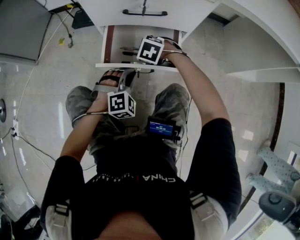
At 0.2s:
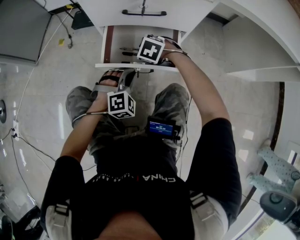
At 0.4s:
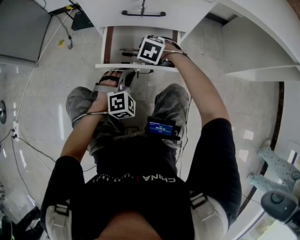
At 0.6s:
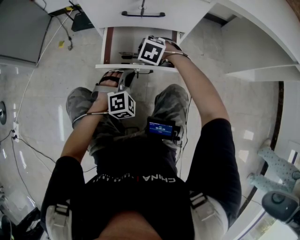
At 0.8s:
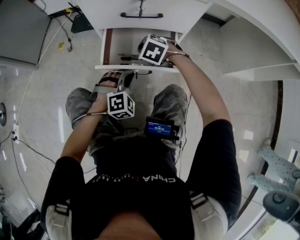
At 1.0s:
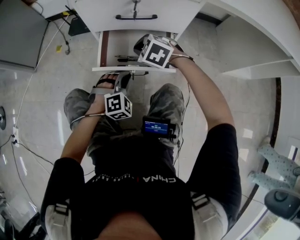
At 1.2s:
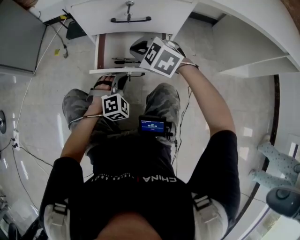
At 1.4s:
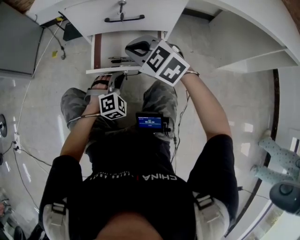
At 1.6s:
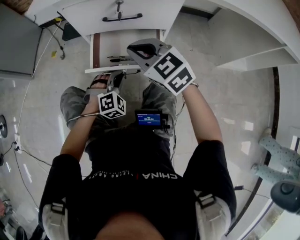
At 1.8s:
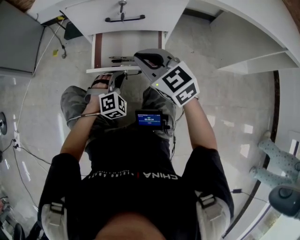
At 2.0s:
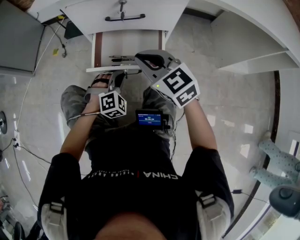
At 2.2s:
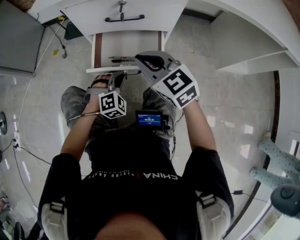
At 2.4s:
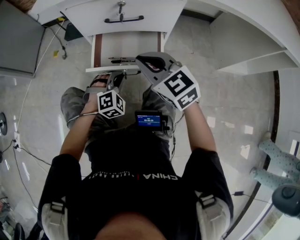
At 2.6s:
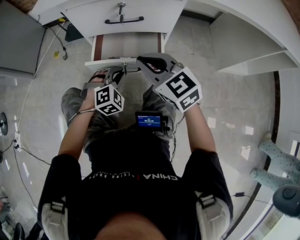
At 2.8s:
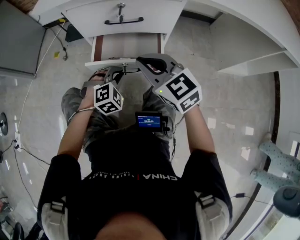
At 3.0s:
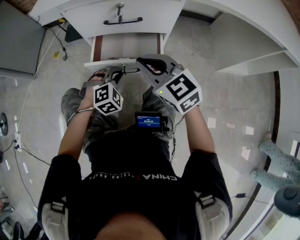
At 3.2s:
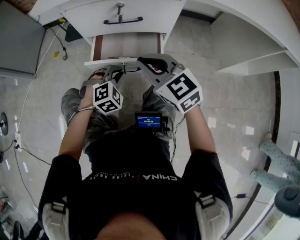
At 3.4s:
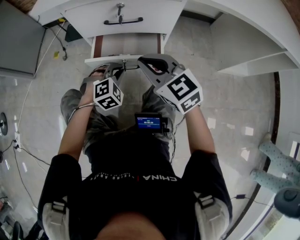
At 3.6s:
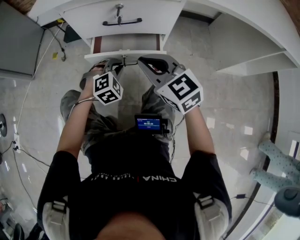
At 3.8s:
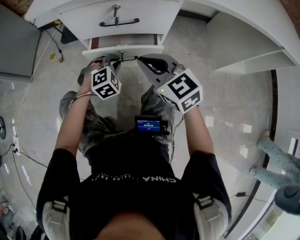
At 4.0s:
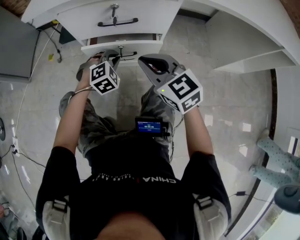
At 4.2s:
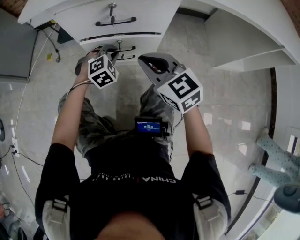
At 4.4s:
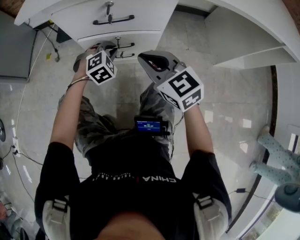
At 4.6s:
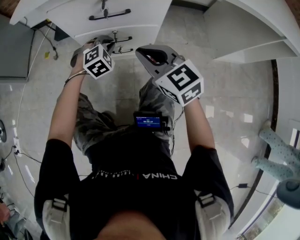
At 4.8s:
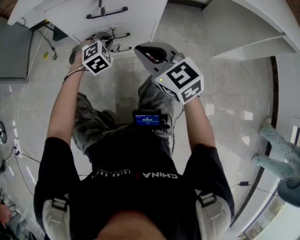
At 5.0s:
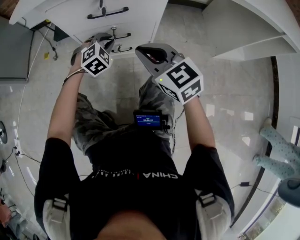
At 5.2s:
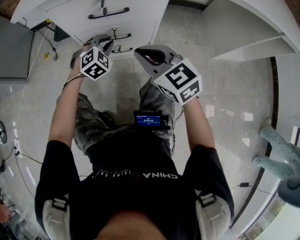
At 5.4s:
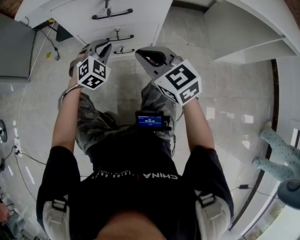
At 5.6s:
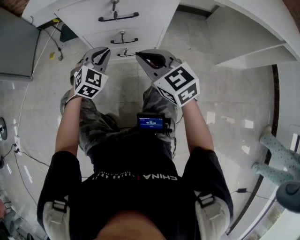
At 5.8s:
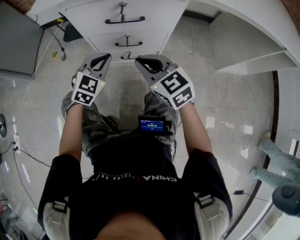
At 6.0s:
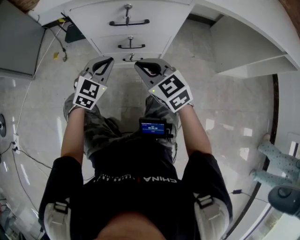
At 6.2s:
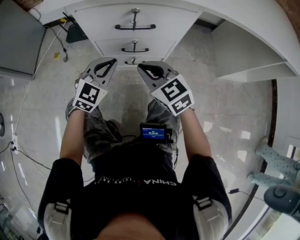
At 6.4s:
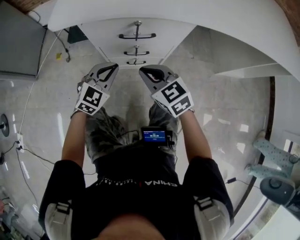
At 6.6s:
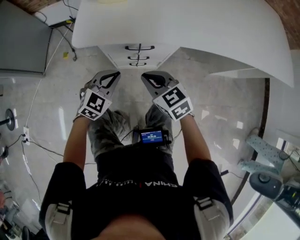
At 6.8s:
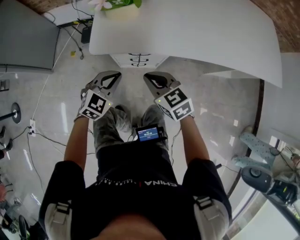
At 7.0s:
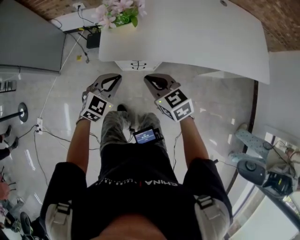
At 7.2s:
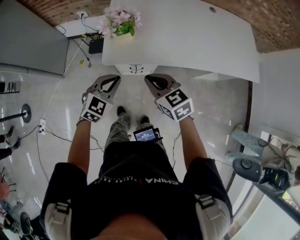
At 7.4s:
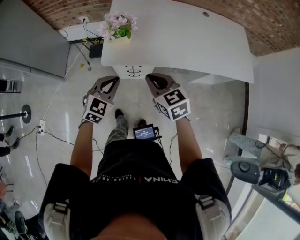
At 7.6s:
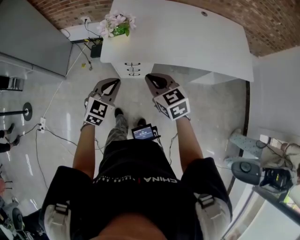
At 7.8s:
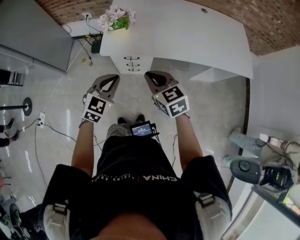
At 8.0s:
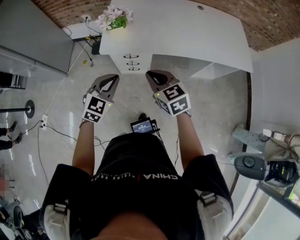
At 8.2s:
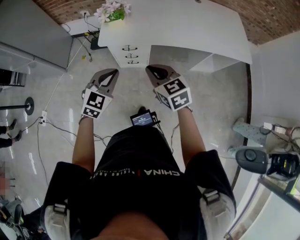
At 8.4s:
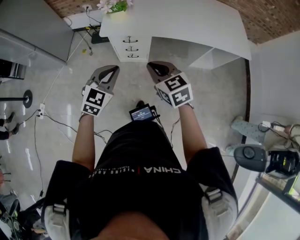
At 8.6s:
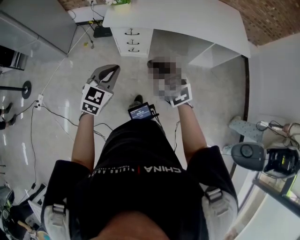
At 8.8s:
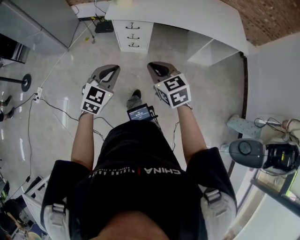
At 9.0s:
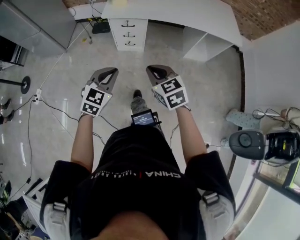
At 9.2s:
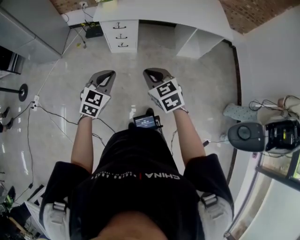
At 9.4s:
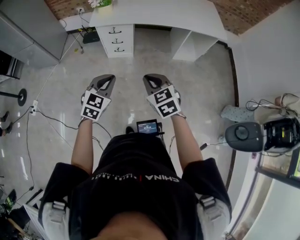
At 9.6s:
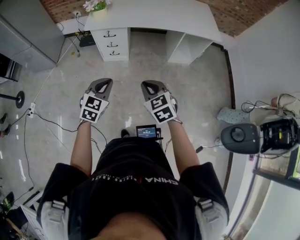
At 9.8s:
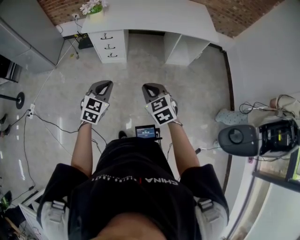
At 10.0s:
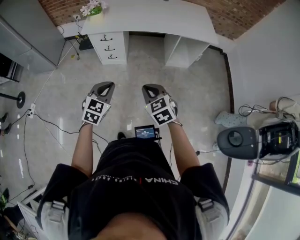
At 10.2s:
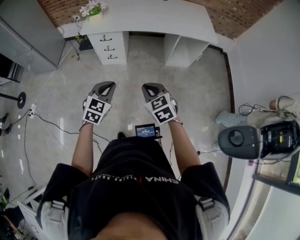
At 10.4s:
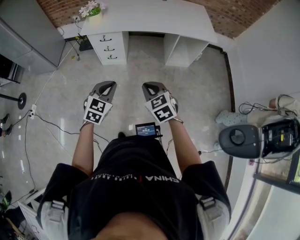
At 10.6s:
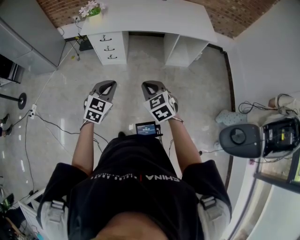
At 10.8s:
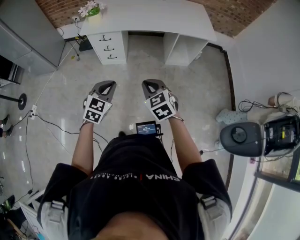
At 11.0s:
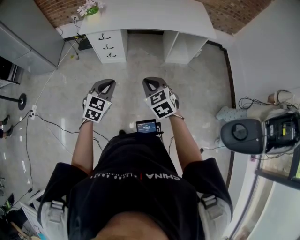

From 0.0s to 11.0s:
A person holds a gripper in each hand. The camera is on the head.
From 0.0s to 1.6s: The right gripper goes roughly 25 cm upward, and tips its fingers upward by approximately 40 degrees.
From 1.6s to 3.2s: The grippers stay close to where they were, moving slightly.
From 3.2s to 4.8s: The left gripper heads forward, covering approximately 15 cm.
From 4.8s to 6.2s: The right gripper shifts some 5 cm to the left. The left gripper is displaced upward, backward and to the left by roughly 15 cm, and rotates about 40 degrees.
From 6.2s to 7.8s: The grippers both shift upward by approximately 60 cm.
From 7.8s to 9.4s: Both grippers travel together backward, approximately 40 cm.
From 9.4s to 11.0s: The two grippers go some 10 cm to the right.

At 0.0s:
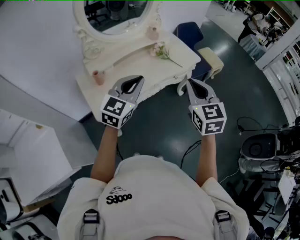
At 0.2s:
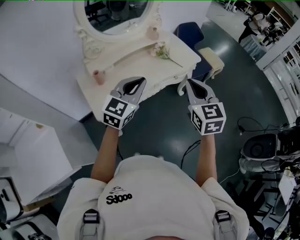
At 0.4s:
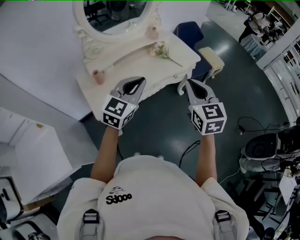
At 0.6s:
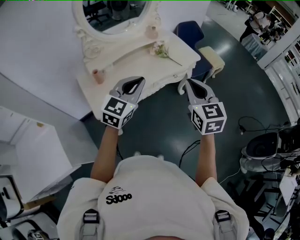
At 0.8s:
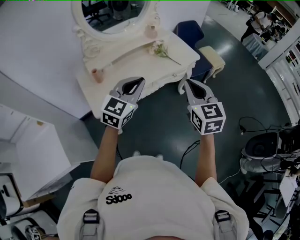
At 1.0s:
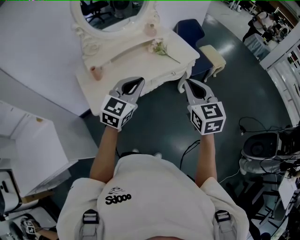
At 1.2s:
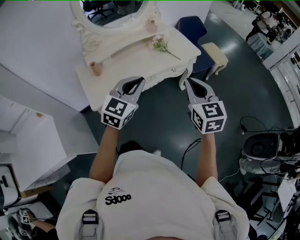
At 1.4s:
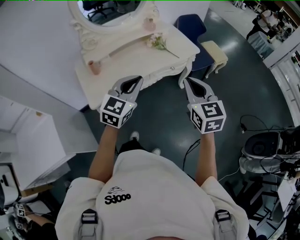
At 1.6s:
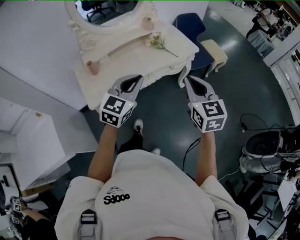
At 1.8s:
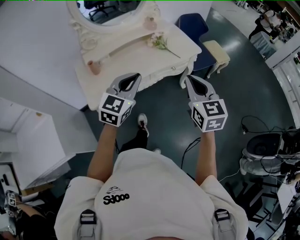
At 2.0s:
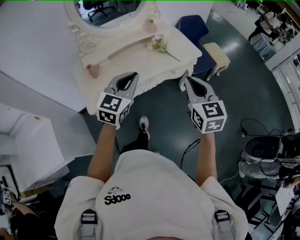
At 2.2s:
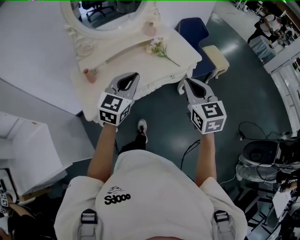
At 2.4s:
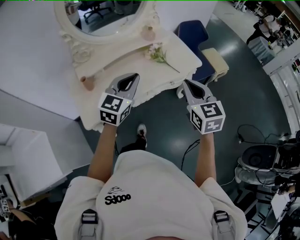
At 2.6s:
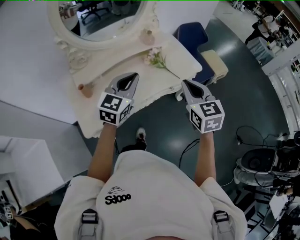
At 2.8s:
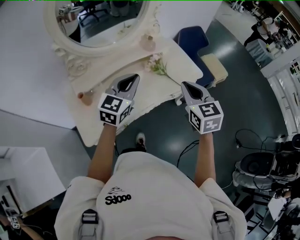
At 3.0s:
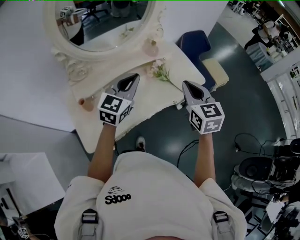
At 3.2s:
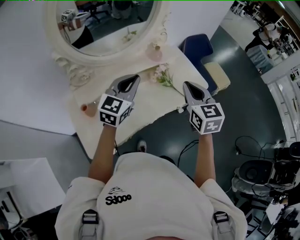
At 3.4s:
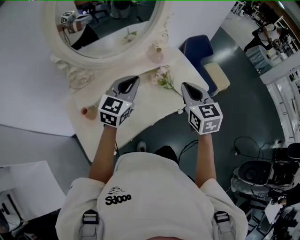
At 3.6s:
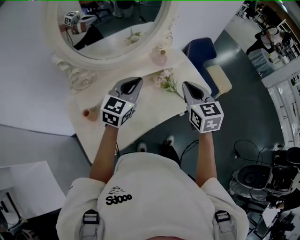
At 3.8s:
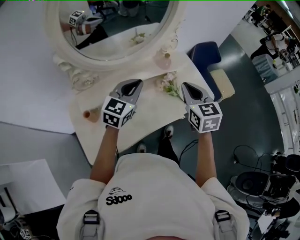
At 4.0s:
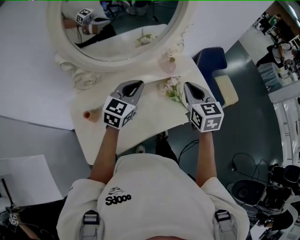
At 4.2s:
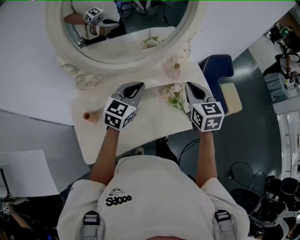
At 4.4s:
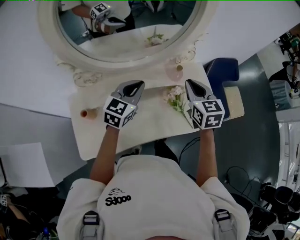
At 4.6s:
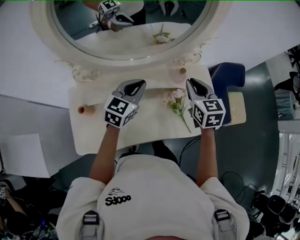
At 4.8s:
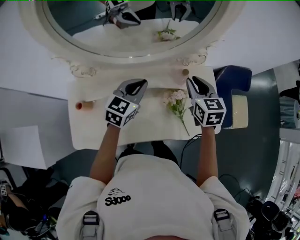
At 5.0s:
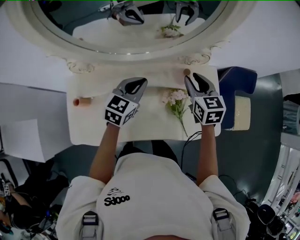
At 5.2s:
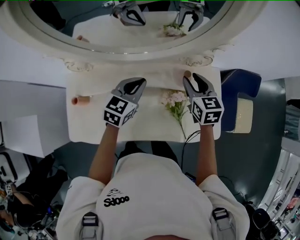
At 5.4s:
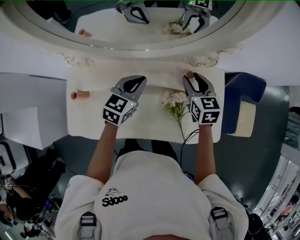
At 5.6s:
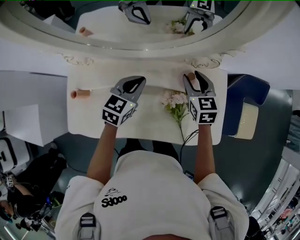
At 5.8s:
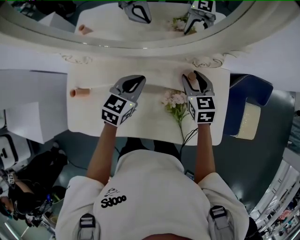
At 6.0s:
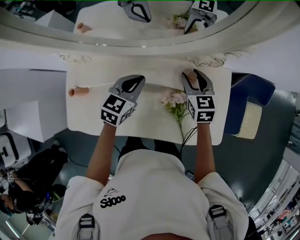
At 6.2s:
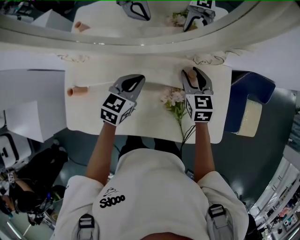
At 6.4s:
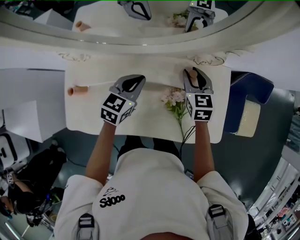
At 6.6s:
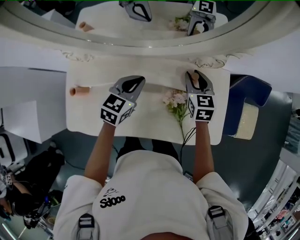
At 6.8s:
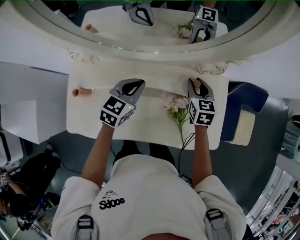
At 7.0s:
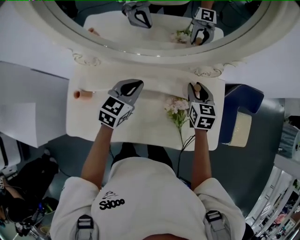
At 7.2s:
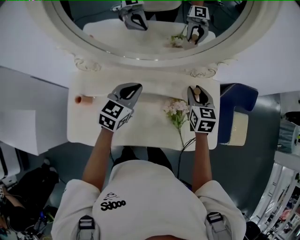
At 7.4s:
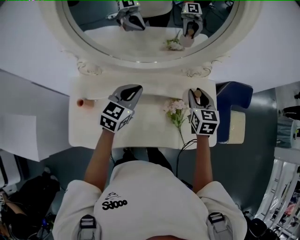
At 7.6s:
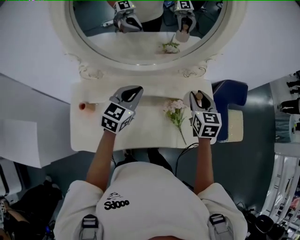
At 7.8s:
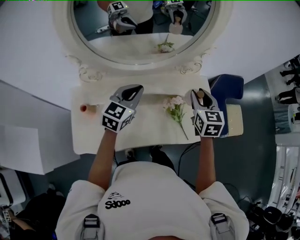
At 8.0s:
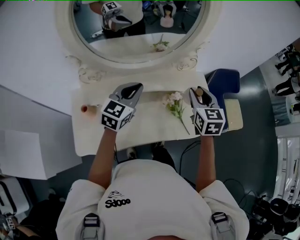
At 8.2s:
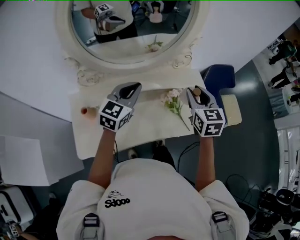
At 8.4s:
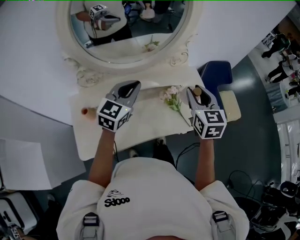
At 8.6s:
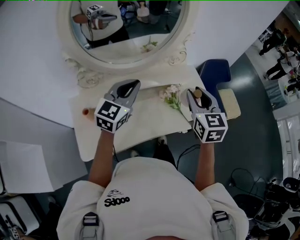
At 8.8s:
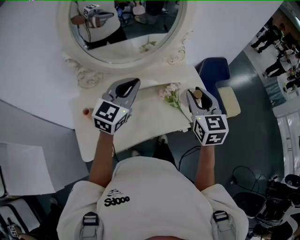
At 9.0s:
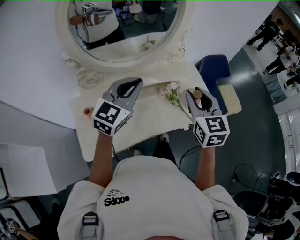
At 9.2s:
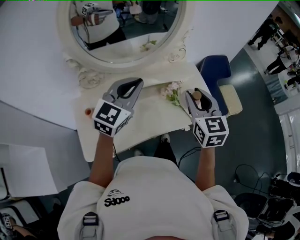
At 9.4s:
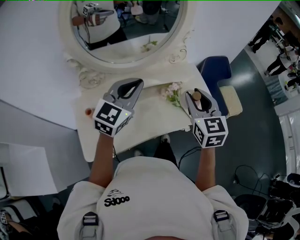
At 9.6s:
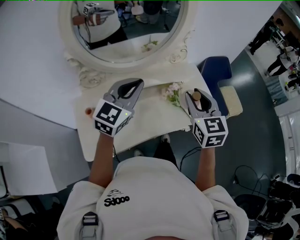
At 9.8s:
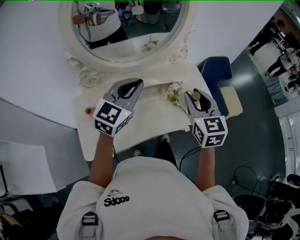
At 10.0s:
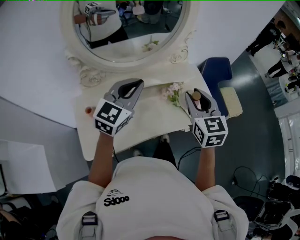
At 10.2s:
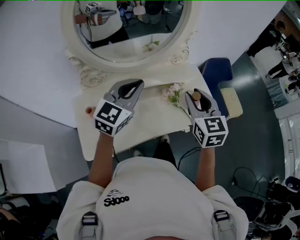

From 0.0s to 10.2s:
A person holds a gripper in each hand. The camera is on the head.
From 0.0s to 1.4s: The grippers both shift to the right by roughly 5 cm.
From 1.4s to 3.0s: Both grippers travel together forward, roughly 30 cm.
From 3.0s to 4.4s: The right gripper goes some 25 cm forward. The left gripper goes some 15 cm forward and to the left.
From 4.4s to 5.8s: The right gripper is displaced downward and forward by approximately 20 cm, and opens its fingers; the left gripper shifts approximately 10 cm downward and forward, and swivels roughly 20 degrees.
From 5.8s to 7.2s: The right gripper ends up about 5 cm from where it was; the left gripper changes place by some 5 cm.
From 7.2s to 8.8s: The right gripper heads backward and upward, covering roughly 30 cm. Meanwhile the left gripper goes some 20 cm upward and backward, and turns by approximately 30 degrees.
From 8.8s to 10.2s: The grippers make only small movements.

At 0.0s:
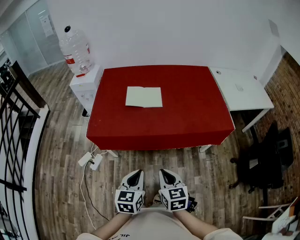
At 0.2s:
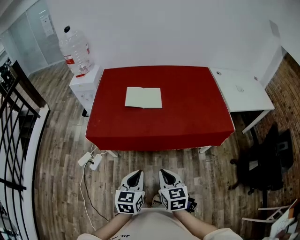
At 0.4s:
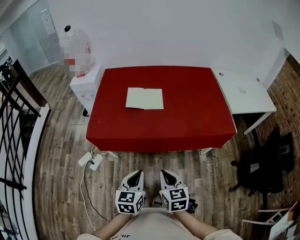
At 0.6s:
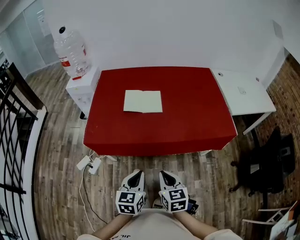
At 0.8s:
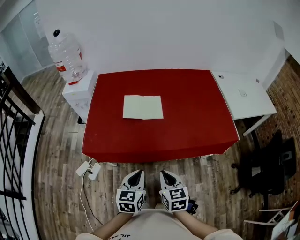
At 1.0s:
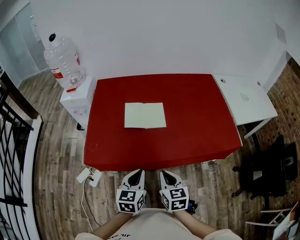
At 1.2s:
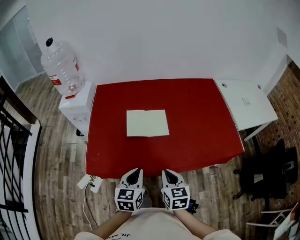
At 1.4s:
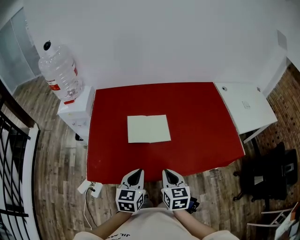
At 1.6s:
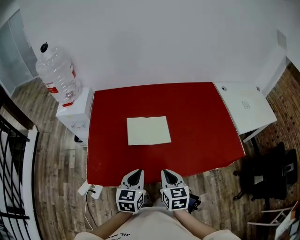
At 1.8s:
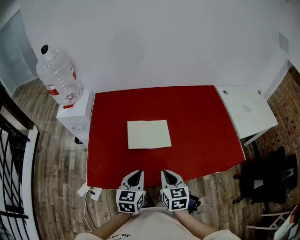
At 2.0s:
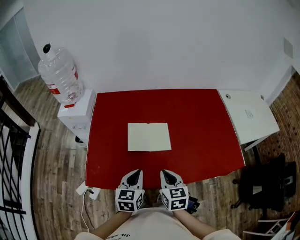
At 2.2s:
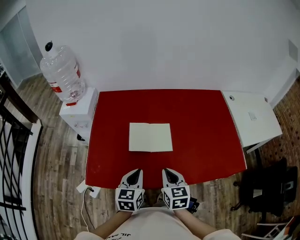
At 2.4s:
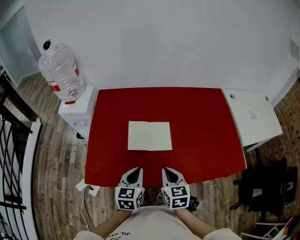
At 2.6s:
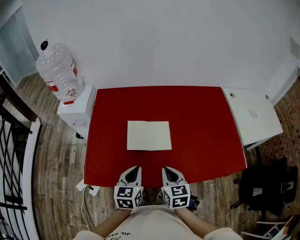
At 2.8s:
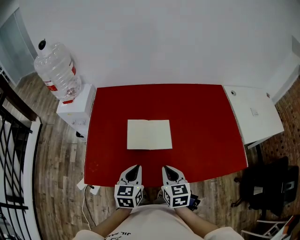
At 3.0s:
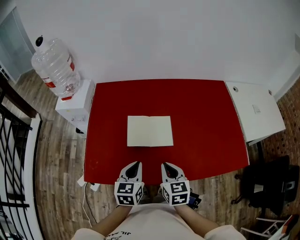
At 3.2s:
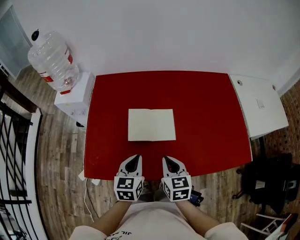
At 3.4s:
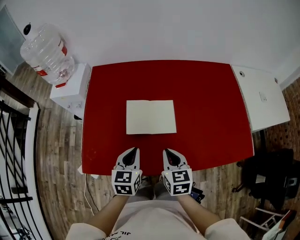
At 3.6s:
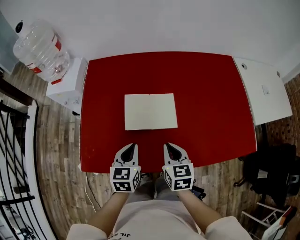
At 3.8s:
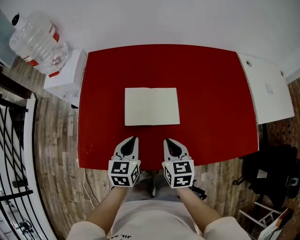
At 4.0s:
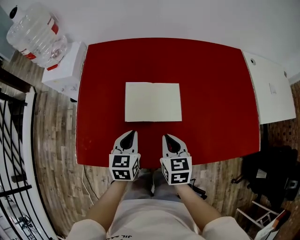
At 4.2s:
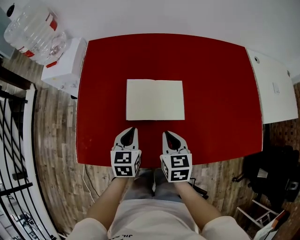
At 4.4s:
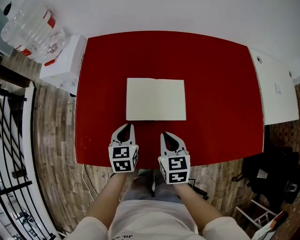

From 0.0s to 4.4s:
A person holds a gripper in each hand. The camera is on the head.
From 0.0s to 1.4s: The grippers both shift forward by approximately 30 cm.
From 1.4s to 3.0s: Both grippers travel together forward, roughly 10 cm.
From 3.0s to 4.4s: The left gripper travels downward, forward and to the left by approximately 20 cm, while the right gripper travels downward and forward by roughly 15 cm.
